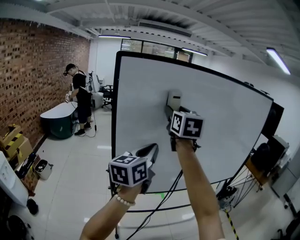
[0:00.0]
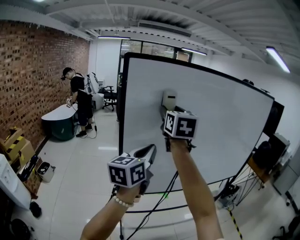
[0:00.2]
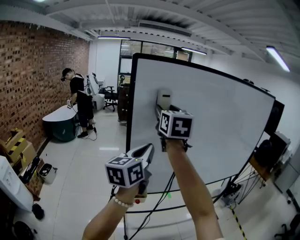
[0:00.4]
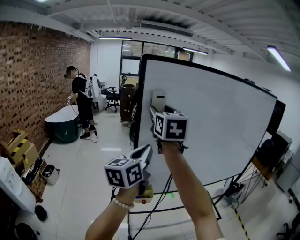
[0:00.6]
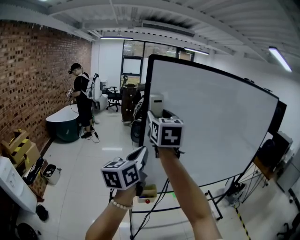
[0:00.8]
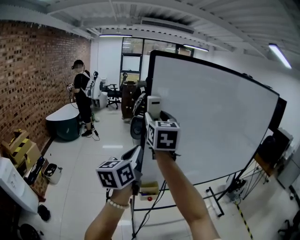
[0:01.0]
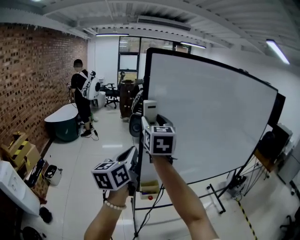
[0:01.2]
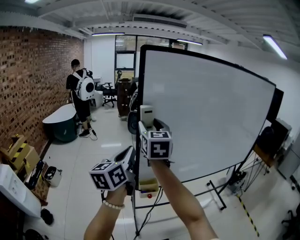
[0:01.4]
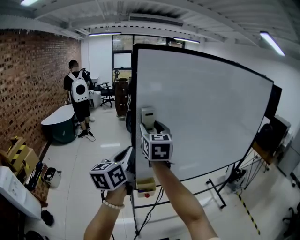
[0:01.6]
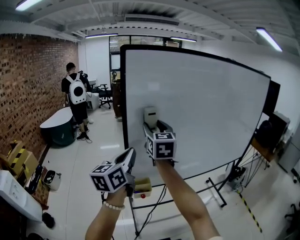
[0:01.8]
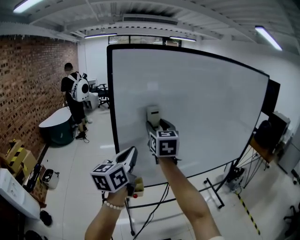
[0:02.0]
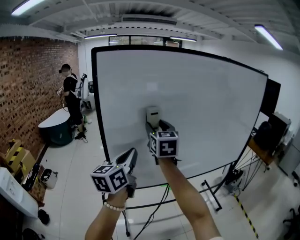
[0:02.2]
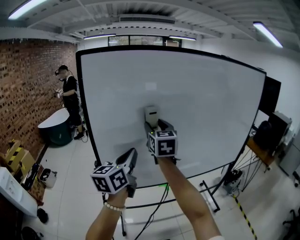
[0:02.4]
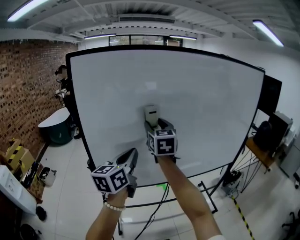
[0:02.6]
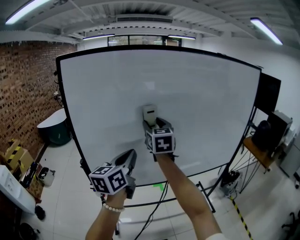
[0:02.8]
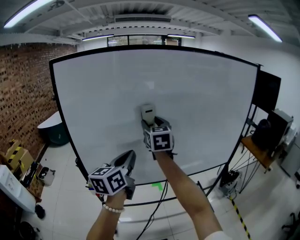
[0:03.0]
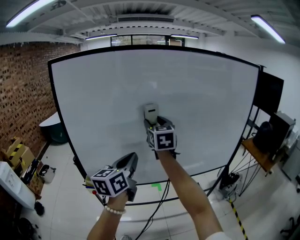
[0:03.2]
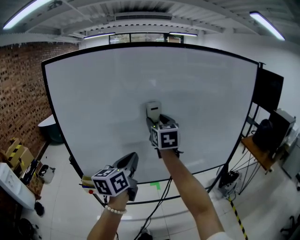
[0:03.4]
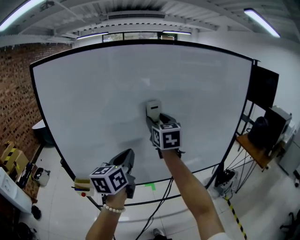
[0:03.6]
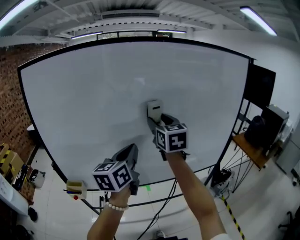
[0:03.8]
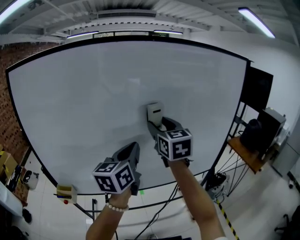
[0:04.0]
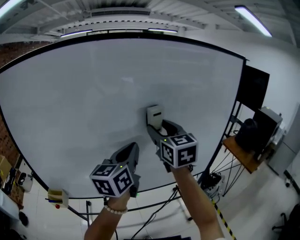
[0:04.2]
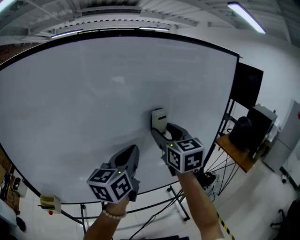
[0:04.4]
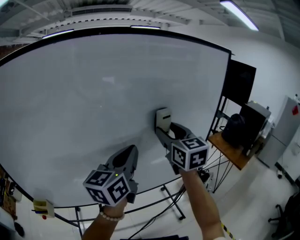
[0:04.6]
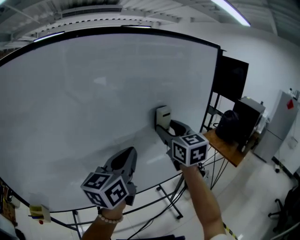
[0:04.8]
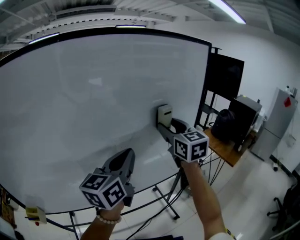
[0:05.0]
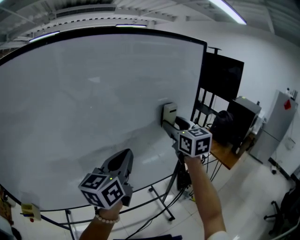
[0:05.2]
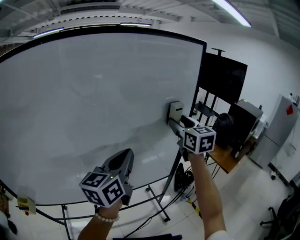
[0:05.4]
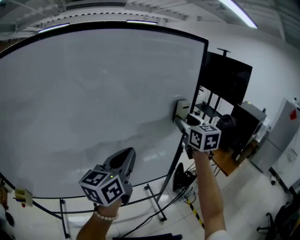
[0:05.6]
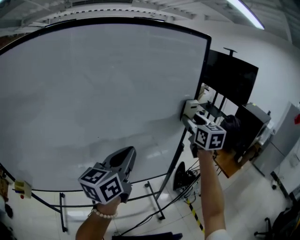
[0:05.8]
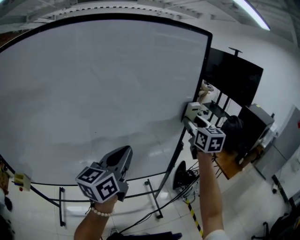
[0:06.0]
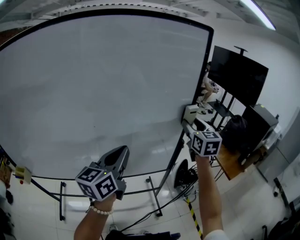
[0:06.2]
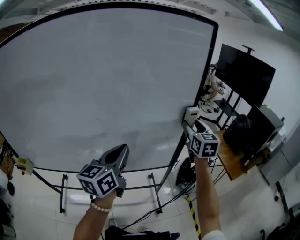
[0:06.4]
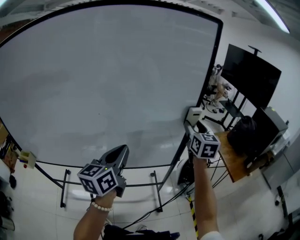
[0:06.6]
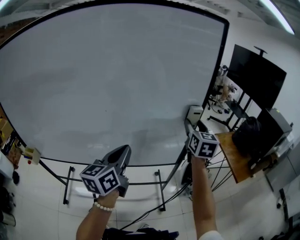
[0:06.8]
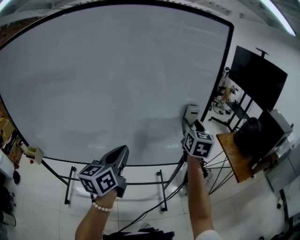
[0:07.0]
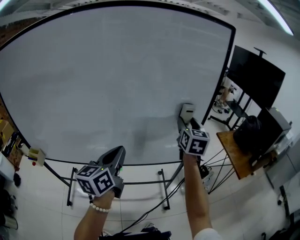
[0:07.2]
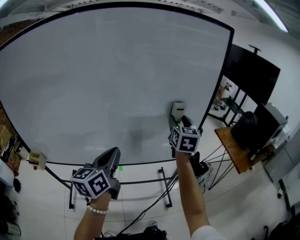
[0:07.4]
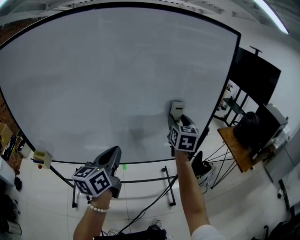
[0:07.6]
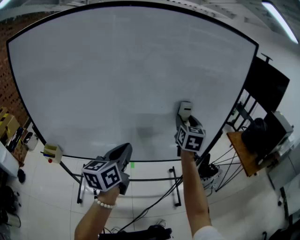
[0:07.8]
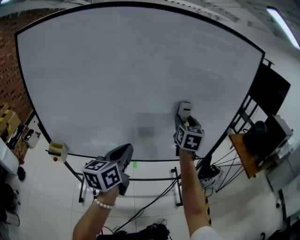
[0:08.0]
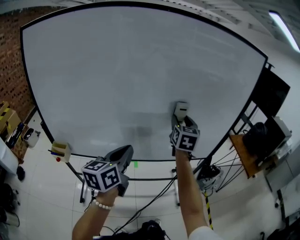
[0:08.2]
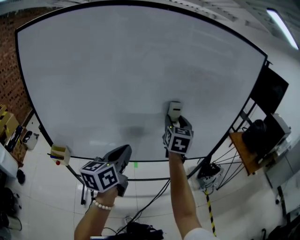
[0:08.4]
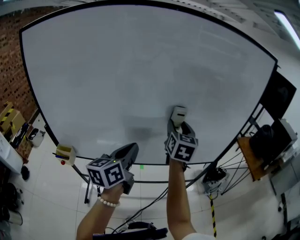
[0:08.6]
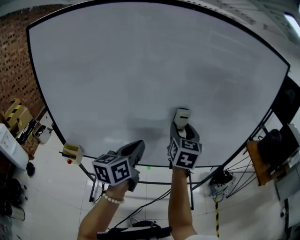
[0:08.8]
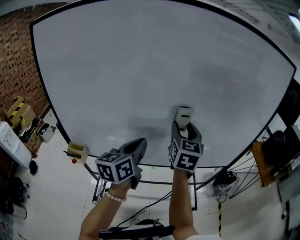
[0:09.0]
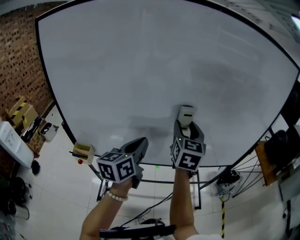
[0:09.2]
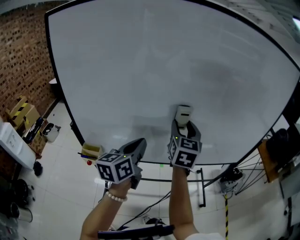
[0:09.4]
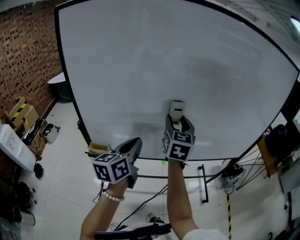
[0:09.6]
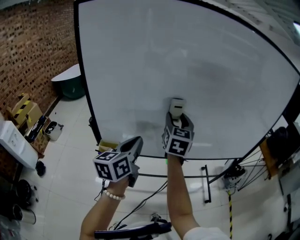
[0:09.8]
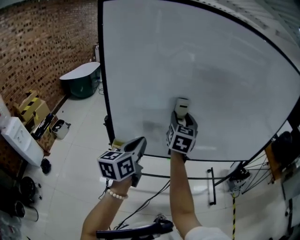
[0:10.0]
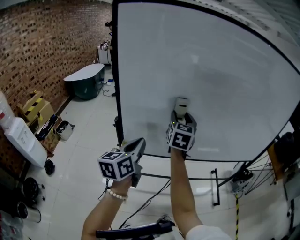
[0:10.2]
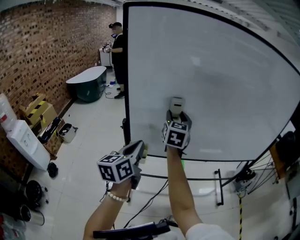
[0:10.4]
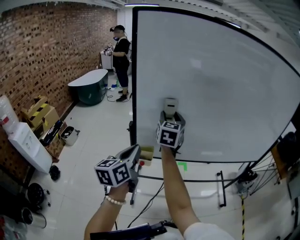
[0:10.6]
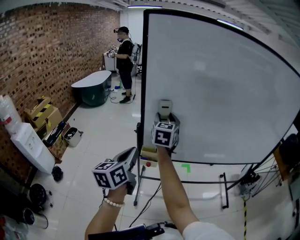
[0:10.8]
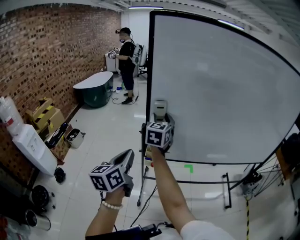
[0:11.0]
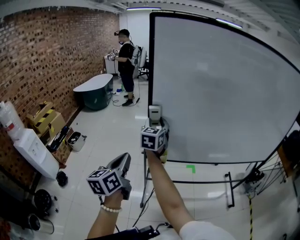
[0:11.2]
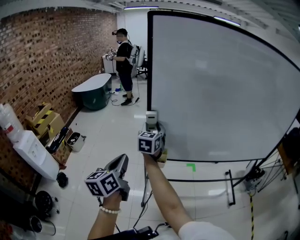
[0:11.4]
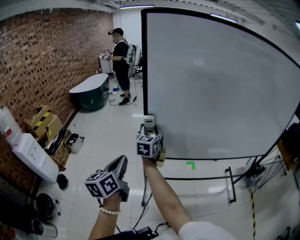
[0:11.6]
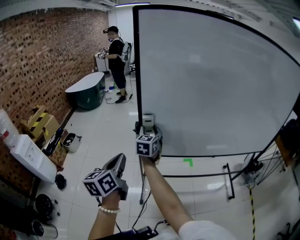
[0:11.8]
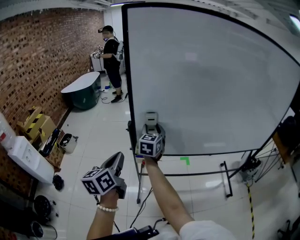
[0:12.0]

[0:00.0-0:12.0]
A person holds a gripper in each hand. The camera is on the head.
0:00.0 to 0:01.6: The left gripper goes roughly 20 cm to the left. Meanwhile the right gripper is displaced to the left and downward by roughly 20 cm.
0:01.6 to 0:03.0: The two grippers go about 35 cm to the right.
0:03.0 to 0:04.4: The right gripper moves to the right, about 30 cm; the left gripper moves to the right and forward, roughly 35 cm.
0:04.4 to 0:06.0: The left gripper moves to the right, roughly 25 cm; the right gripper heads to the right and forward, covering roughly 40 cm.
0:06.0 to 0:07.6: The left gripper is displaced to the left, backward and downward by about 20 cm; the right gripper travels to the left by some 20 cm.
0:07.6 to 0:09.0: Both grippers move to the left, some 25 cm.
0:09.0 to 0:10.4: Both grippers are carried to the left, approximately 40 cm.
0:10.4 to 0:12.0: The left gripper shifts about 10 cm to the left, while the right gripper travels to the left and downward by some 15 cm.

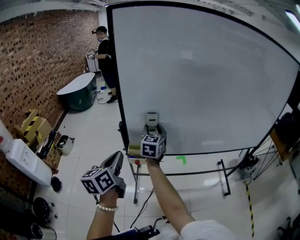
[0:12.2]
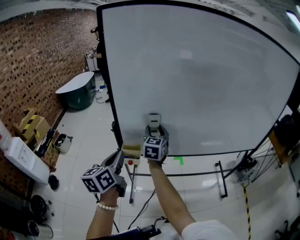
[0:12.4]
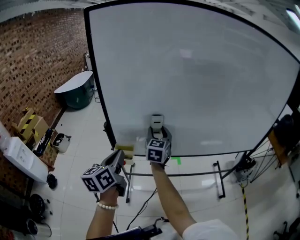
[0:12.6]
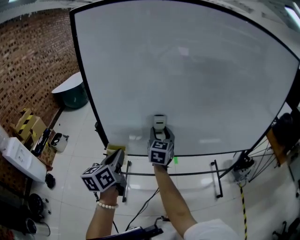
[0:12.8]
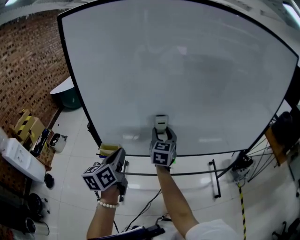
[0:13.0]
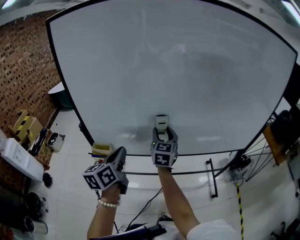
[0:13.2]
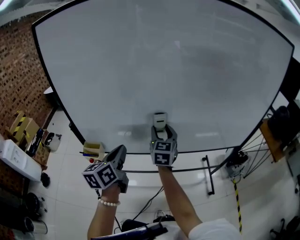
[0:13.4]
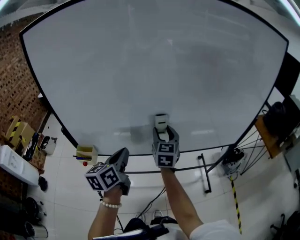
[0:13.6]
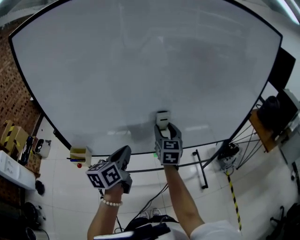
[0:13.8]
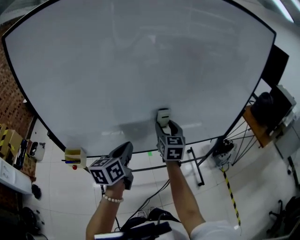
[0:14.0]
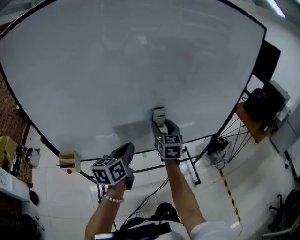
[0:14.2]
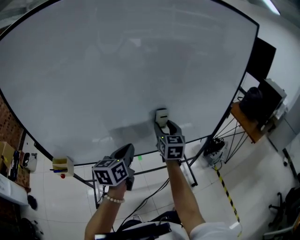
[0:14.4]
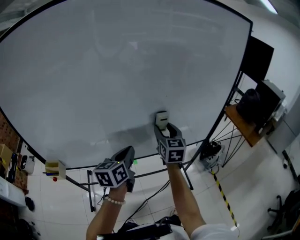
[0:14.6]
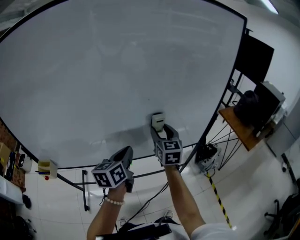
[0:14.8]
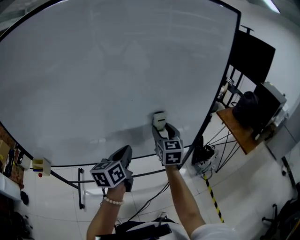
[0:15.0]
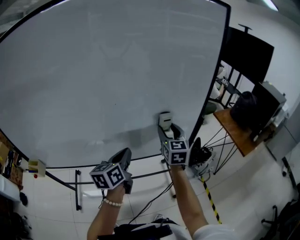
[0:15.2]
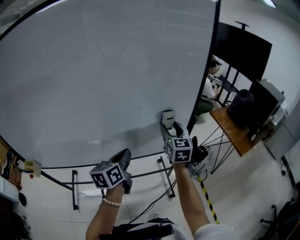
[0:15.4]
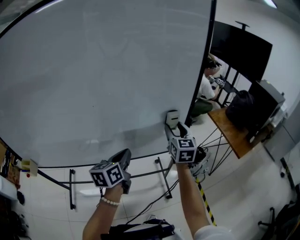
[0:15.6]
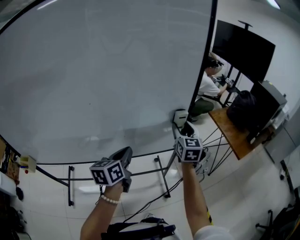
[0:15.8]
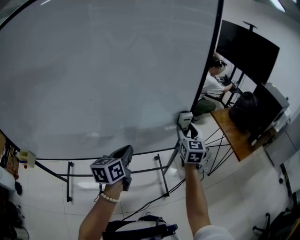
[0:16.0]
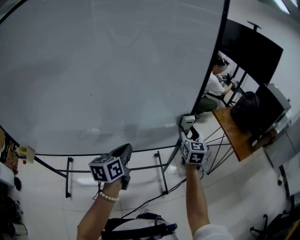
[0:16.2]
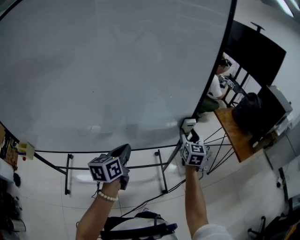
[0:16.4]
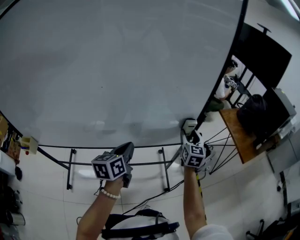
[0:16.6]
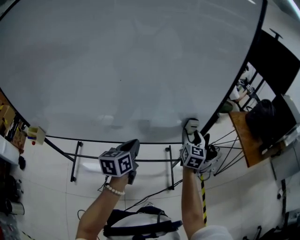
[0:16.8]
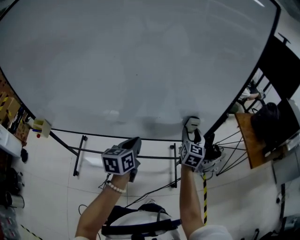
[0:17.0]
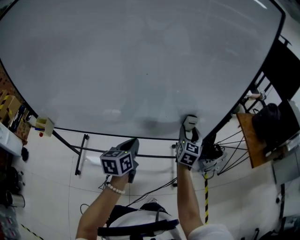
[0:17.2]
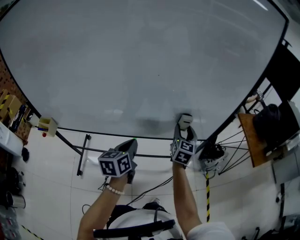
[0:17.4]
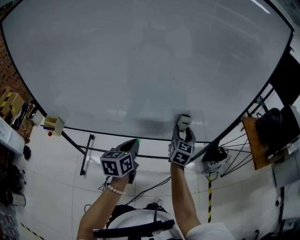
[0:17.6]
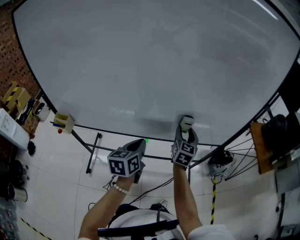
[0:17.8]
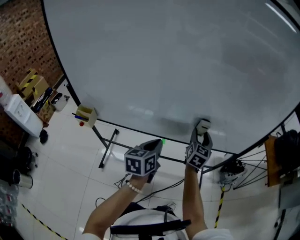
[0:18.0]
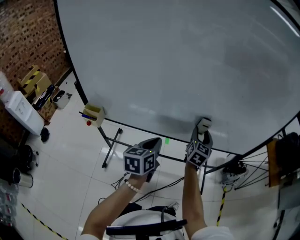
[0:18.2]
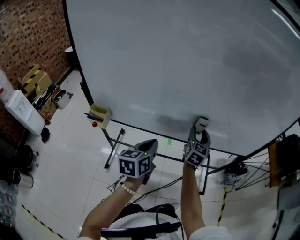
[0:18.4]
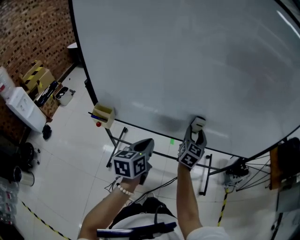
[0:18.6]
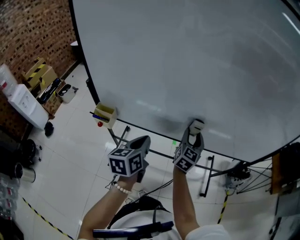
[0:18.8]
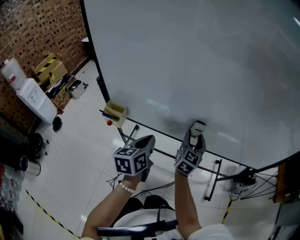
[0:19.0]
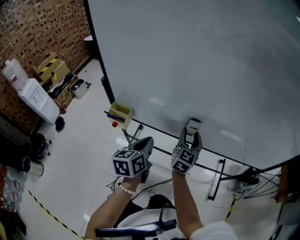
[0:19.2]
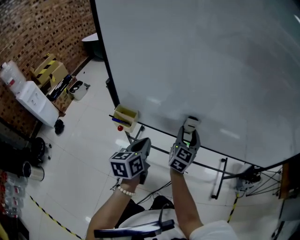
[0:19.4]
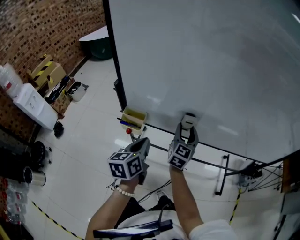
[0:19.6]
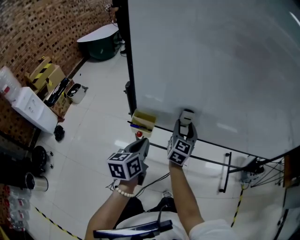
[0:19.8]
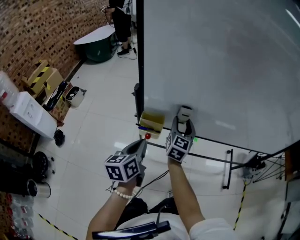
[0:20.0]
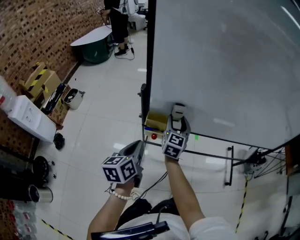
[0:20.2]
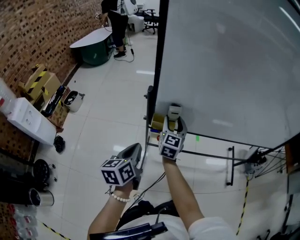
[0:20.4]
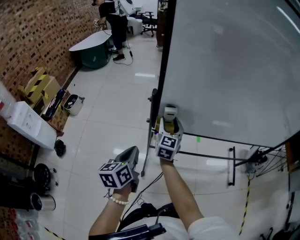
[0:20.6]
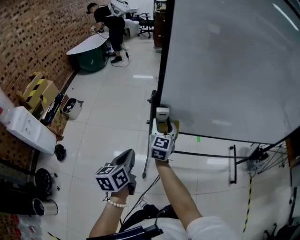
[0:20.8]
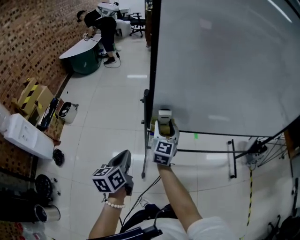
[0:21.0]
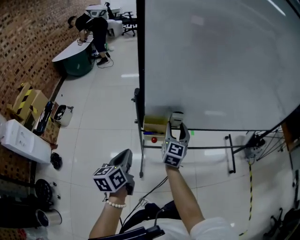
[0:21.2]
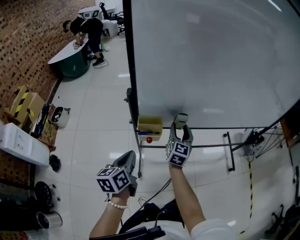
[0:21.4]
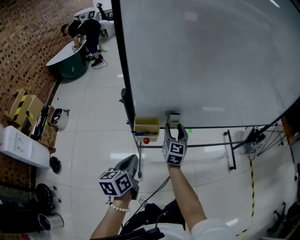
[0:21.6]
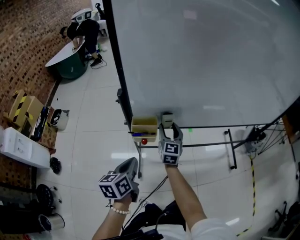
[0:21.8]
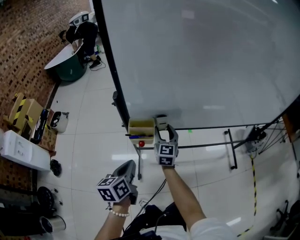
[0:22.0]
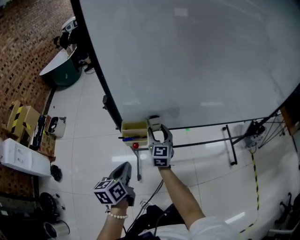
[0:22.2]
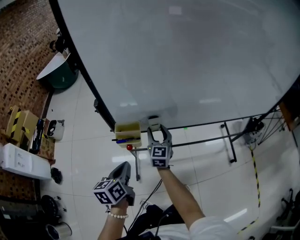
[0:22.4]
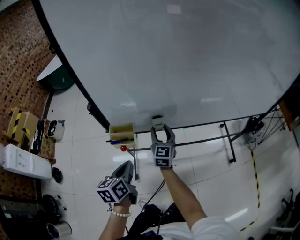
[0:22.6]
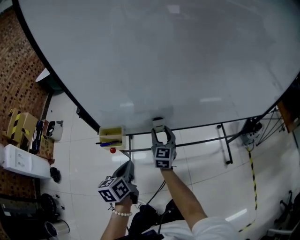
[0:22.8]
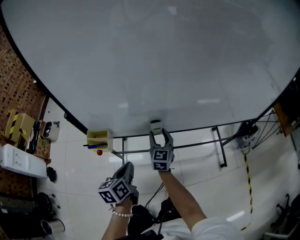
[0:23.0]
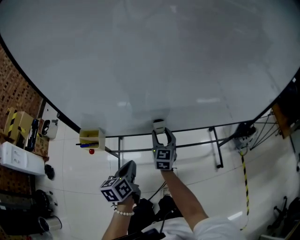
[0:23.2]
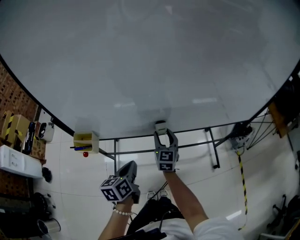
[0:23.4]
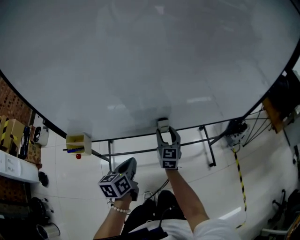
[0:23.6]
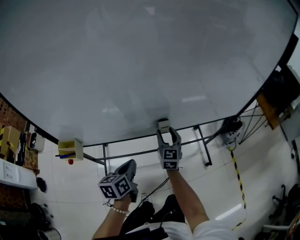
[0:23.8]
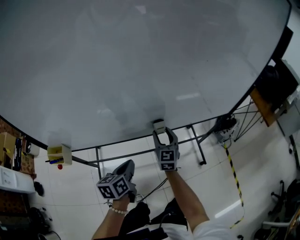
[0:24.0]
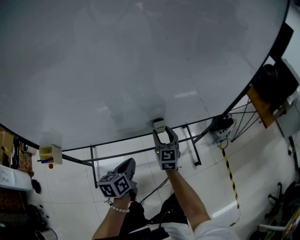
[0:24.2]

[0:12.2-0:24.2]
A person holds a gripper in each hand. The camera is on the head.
0:12.2 to 0:13.8: Both grippers travel together to the right, approximately 40 cm.
0:13.8 to 0:15.2: Both grippers are carried to the right, roughly 40 cm.
0:15.2 to 0:16.6: The right gripper travels to the right and downward by some 20 cm. Meanwhile the left gripper goes roughly 10 cm to the right and downward.
0:16.6 to 0:18.2: The left gripper shifts some 40 cm to the left and backward; the right gripper moves to the left, approximately 50 cm.
0:18.2 to 0:19.8: The two grippers go approximately 40 cm to the left.
0:19.8 to 0:21.2: The left gripper moves to the left, roughly 15 cm. The right gripper moves to the left, roughly 10 cm.
0:21.2 to 0:22.6: The left gripper heads to the right, covering approximately 15 cm, while the right gripper swings left and right, roughly 10 cm each way, with 2 reversals.
0:22.6 to 0:24.2: The two grippers travel together, to the right, some 50 cm.
